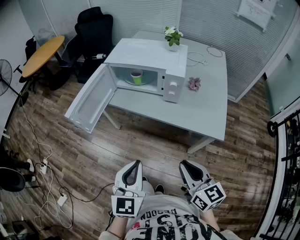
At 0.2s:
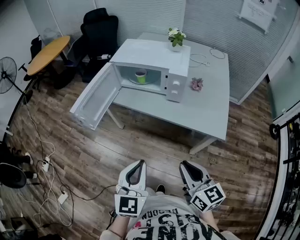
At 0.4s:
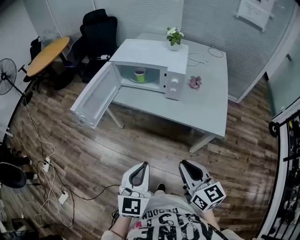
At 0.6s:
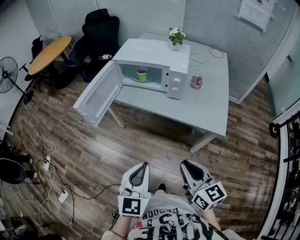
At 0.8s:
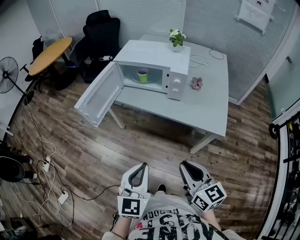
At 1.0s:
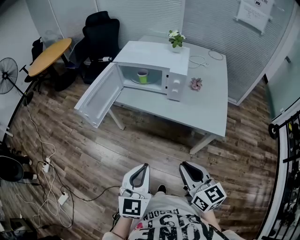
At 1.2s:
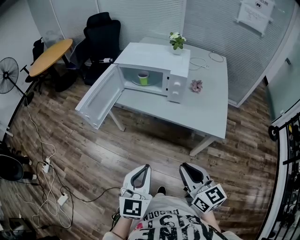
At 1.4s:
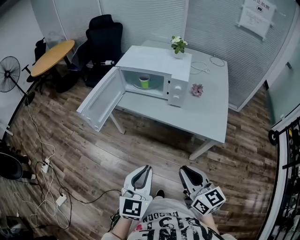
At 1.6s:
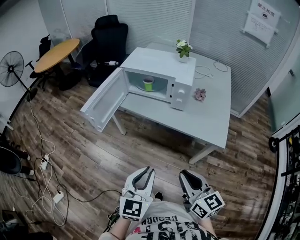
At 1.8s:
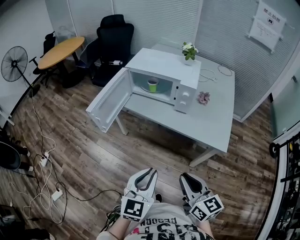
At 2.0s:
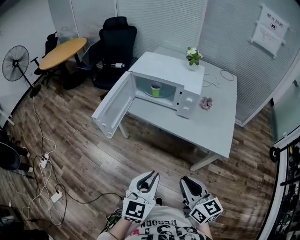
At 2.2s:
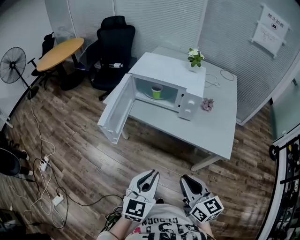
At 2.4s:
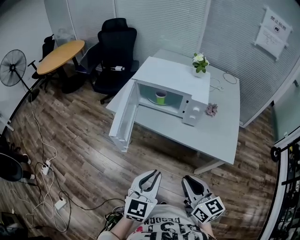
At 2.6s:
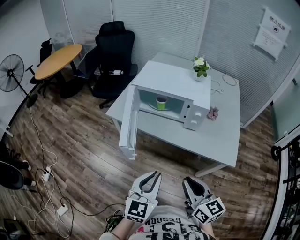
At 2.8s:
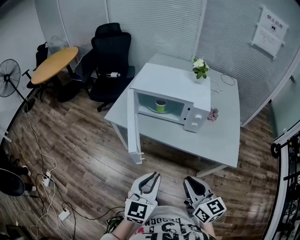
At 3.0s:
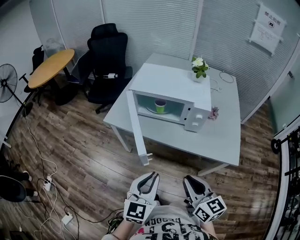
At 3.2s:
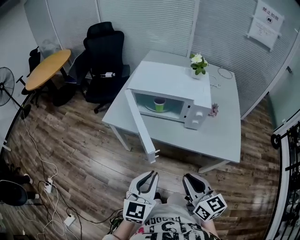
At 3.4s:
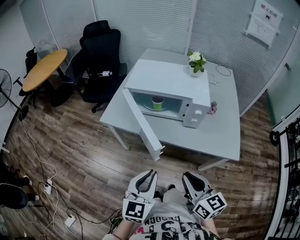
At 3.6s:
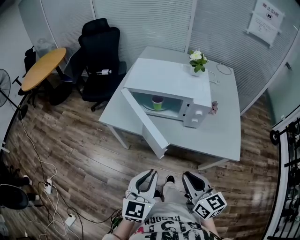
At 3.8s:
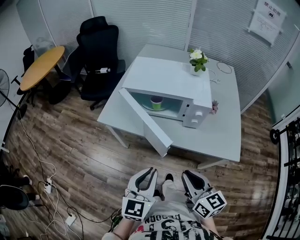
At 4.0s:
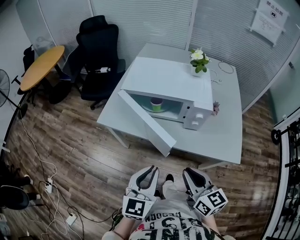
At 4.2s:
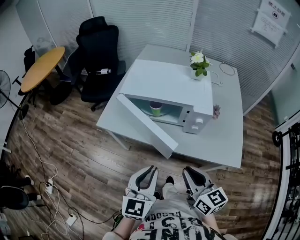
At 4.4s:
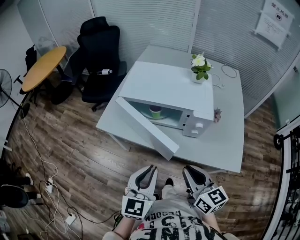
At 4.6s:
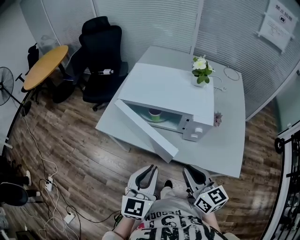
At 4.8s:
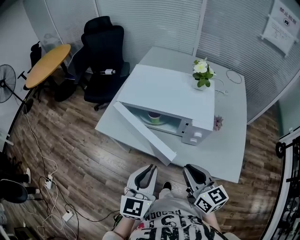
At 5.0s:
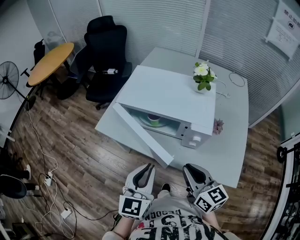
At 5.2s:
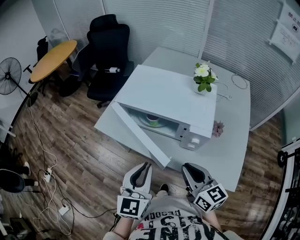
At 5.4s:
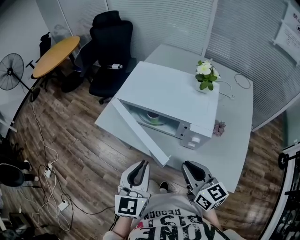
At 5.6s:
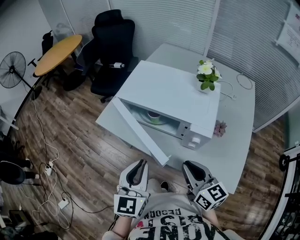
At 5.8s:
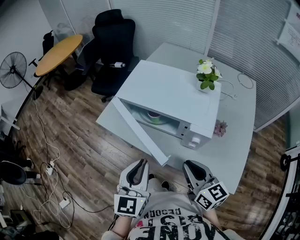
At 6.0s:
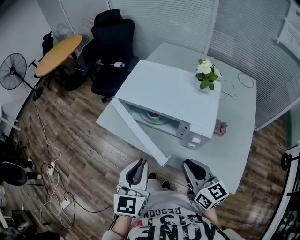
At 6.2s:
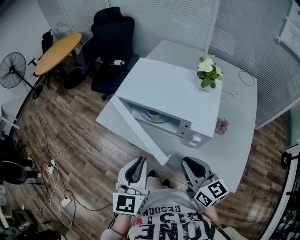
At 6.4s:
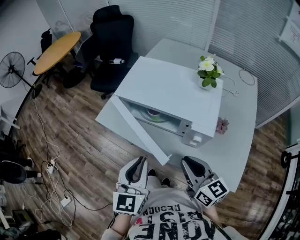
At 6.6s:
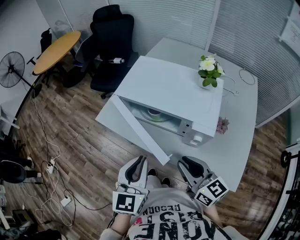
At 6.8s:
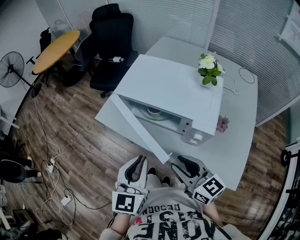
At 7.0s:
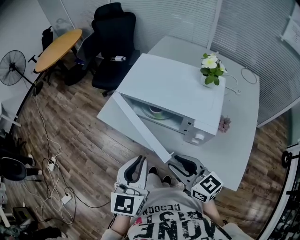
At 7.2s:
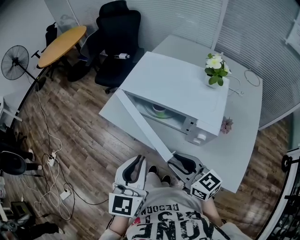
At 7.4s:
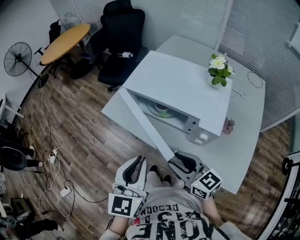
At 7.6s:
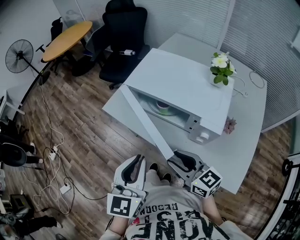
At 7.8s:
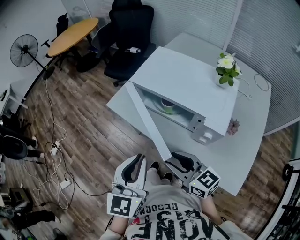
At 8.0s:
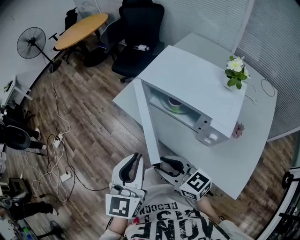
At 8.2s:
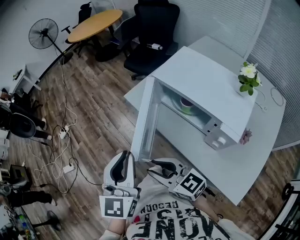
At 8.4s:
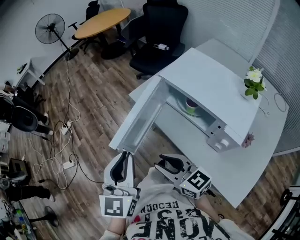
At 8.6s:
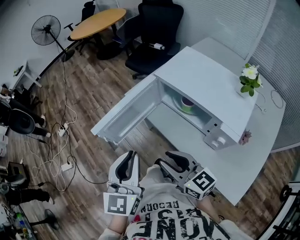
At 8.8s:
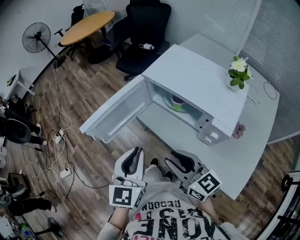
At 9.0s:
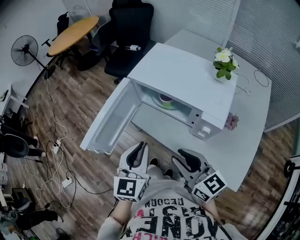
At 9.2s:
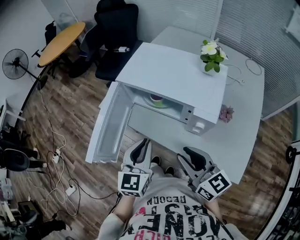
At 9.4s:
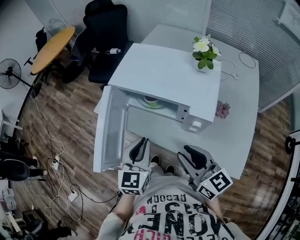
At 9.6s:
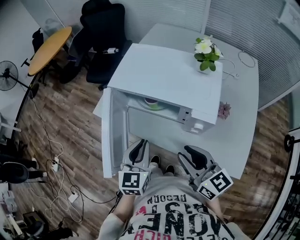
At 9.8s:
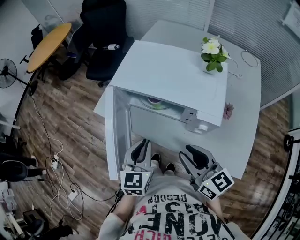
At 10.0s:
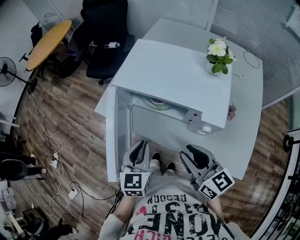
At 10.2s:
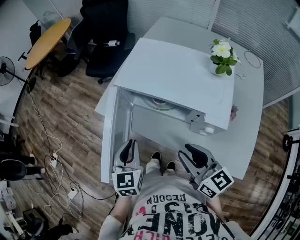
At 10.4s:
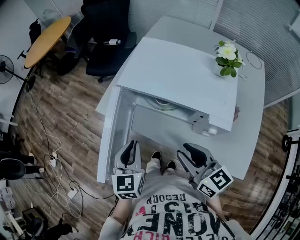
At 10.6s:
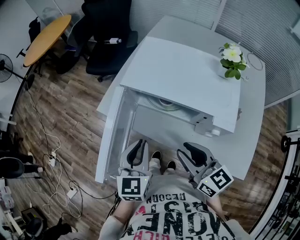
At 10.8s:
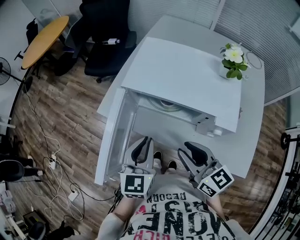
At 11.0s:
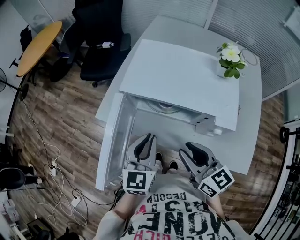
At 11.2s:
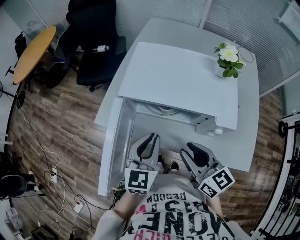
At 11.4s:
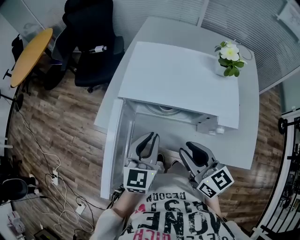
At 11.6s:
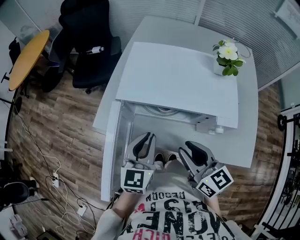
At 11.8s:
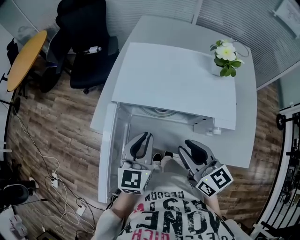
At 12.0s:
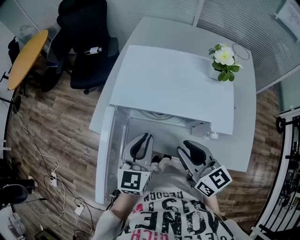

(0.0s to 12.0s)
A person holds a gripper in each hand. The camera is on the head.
0.0s - 1.6s: Both grippers travel together backward, about 5 cm.
1.6s - 3.0s: The grippers both shift forward and to the left by some 15 cm.
3.0s - 4.4s: The grippers both shift forward by about 10 cm.
4.4s - 6.0s: The left gripper travels forward by about 5 cm; the right gripper goes approximately 10 cm forward and to the right.
6.0s - 7.6s: The right gripper heads to the left, covering approximately 10 cm, and turns by some 20 degrees.
7.6s - 9.0s: The right gripper moves roughly 15 cm to the left and comes back; the left gripper goes to the left and returns, about 10 cm each way.
9.0s - 10.4s: The left gripper travels forward and downward by about 10 cm. Meanwhile the right gripper goes approximately 5 cm forward.
10.4s - 12.0s: The left gripper goes approximately 10 cm forward and to the right, and changes its angle by some 20 degrees. Meanwhile the right gripper moves forward, approximately 5 cm.

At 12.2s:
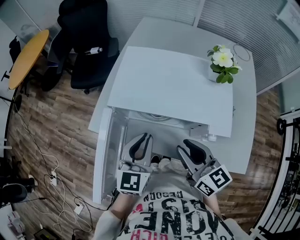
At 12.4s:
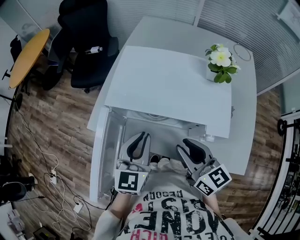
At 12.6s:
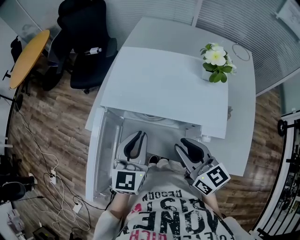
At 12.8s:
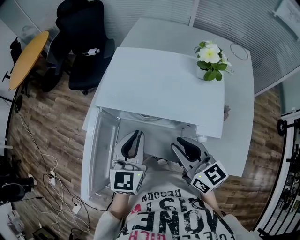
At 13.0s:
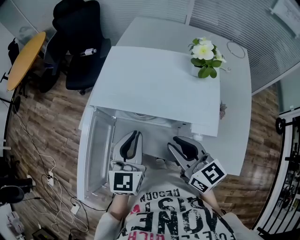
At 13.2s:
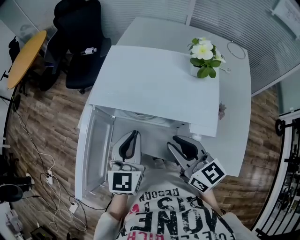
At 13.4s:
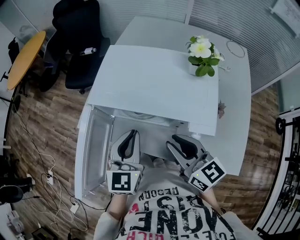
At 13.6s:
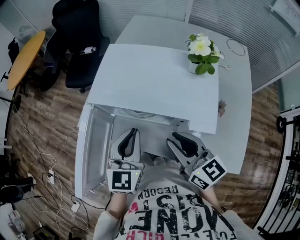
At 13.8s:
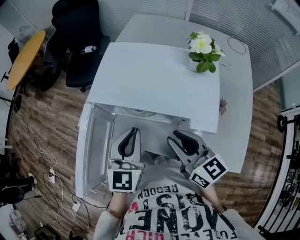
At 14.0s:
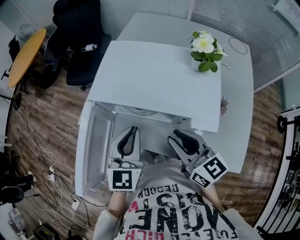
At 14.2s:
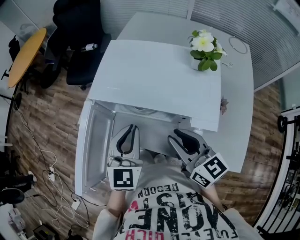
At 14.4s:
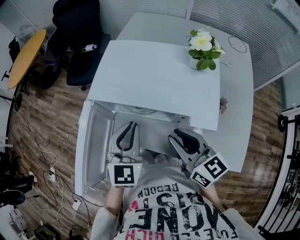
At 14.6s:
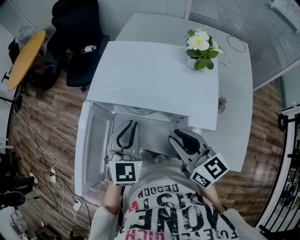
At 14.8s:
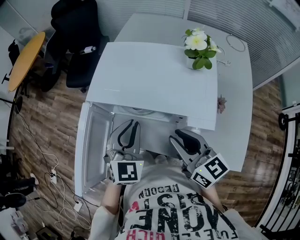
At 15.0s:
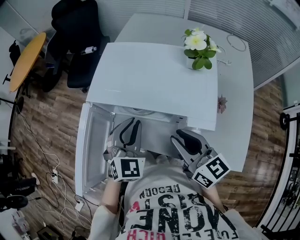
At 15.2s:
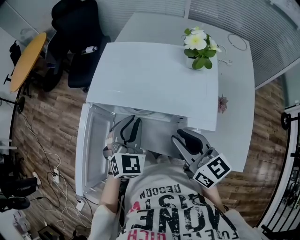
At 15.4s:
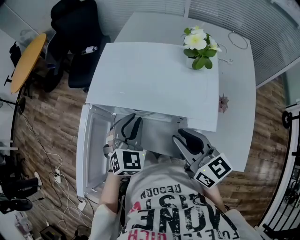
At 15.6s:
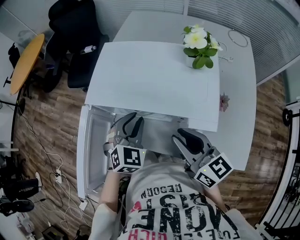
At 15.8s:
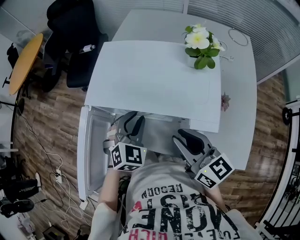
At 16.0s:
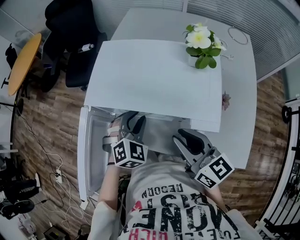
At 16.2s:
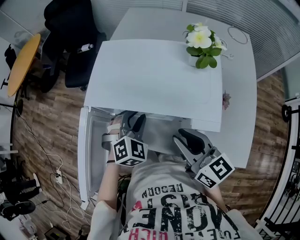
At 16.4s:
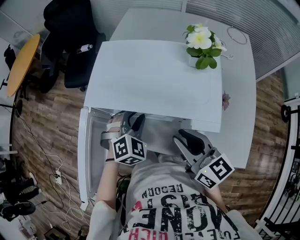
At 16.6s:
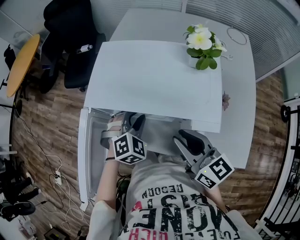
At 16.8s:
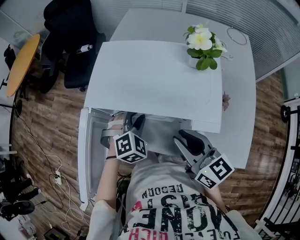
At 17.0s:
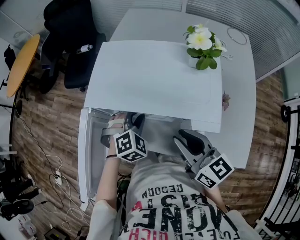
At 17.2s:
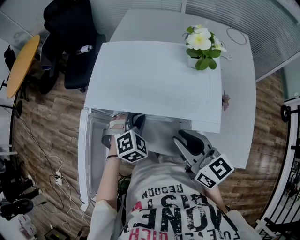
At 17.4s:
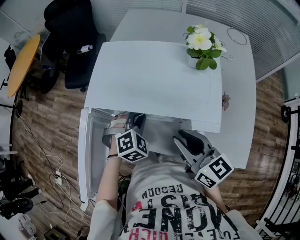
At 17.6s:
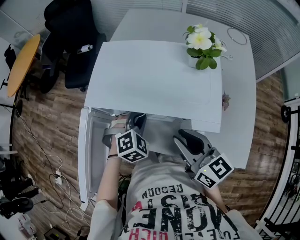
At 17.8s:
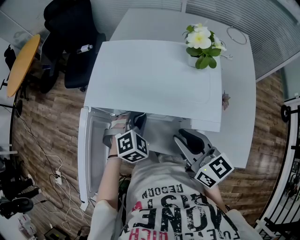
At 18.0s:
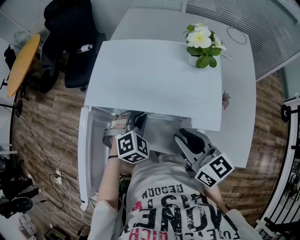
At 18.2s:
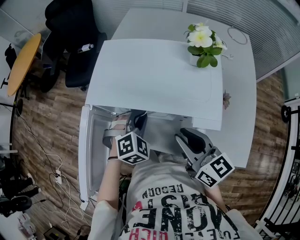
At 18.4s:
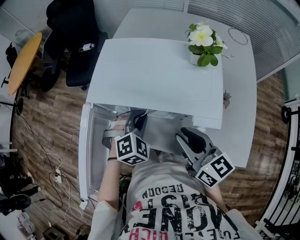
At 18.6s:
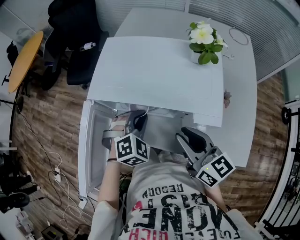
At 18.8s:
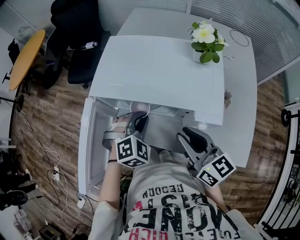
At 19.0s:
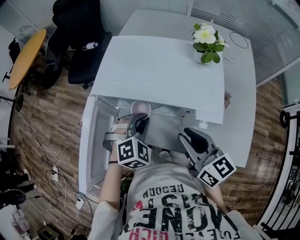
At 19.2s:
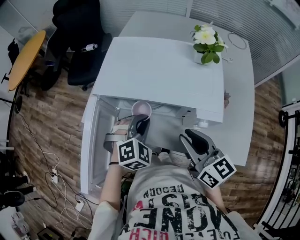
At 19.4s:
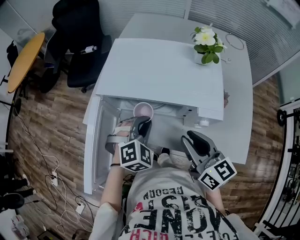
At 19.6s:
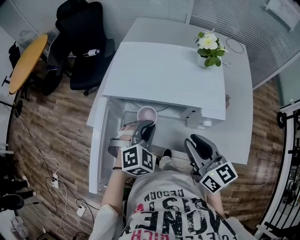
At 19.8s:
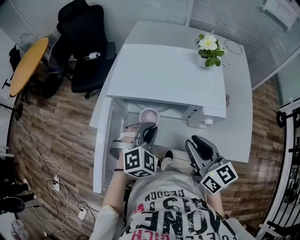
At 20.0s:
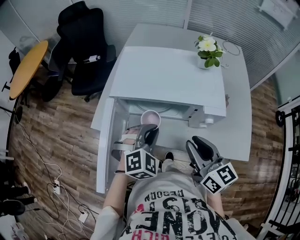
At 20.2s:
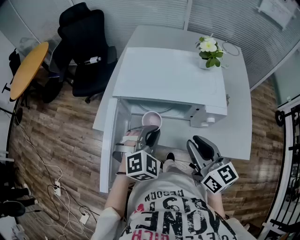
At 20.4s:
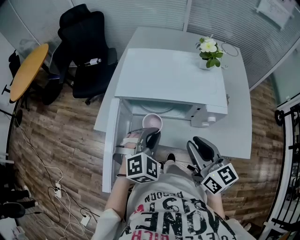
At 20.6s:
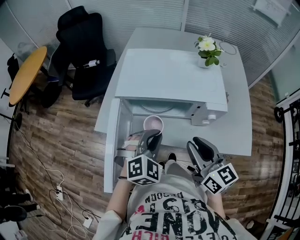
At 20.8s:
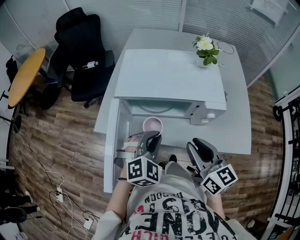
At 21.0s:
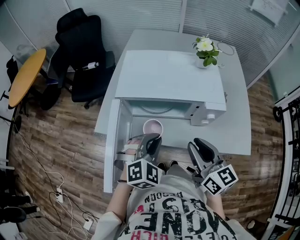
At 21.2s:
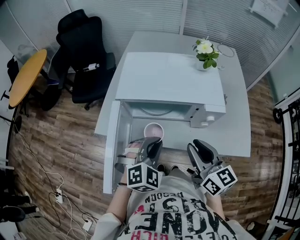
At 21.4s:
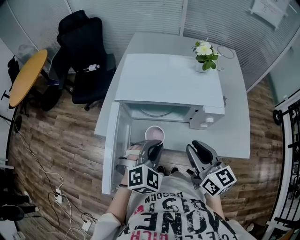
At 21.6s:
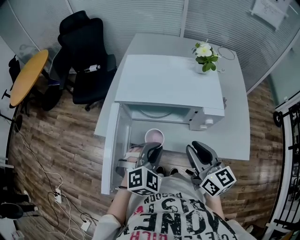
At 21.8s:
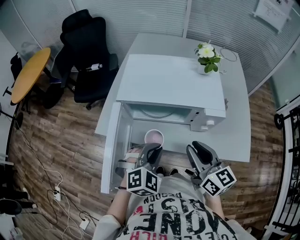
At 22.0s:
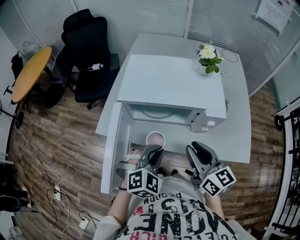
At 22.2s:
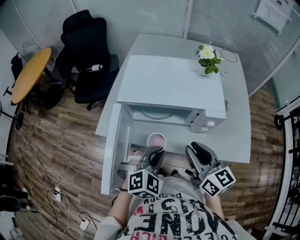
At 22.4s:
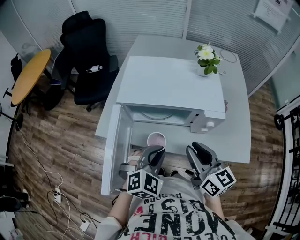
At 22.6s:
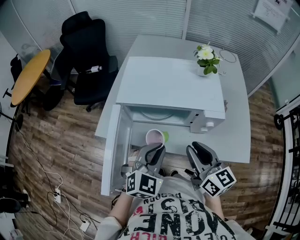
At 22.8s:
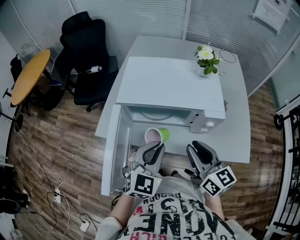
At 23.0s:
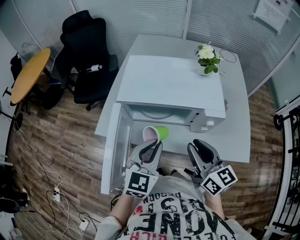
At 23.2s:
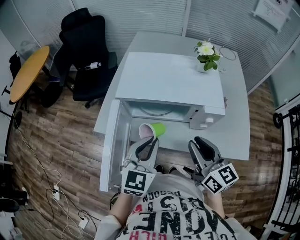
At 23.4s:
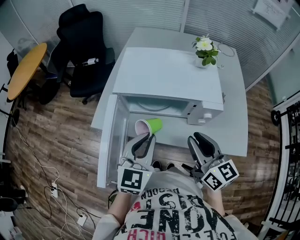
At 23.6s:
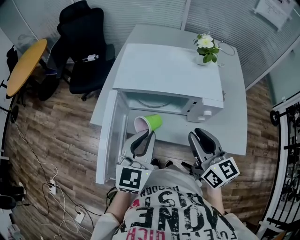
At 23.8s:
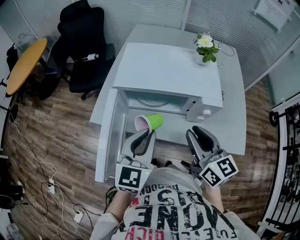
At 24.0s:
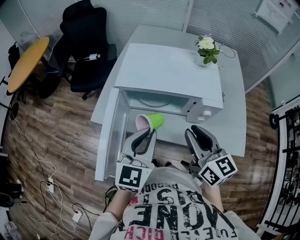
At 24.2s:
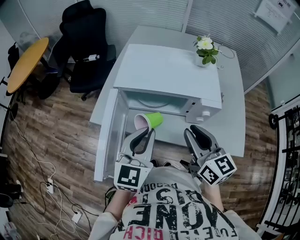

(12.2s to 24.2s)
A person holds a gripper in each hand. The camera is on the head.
12.2s - 13.8s: There are only small adjustments of the grippers.
13.8s - 15.2s: The left gripper moves roughly 5 cm, and rotates approximately 30 degrees.
15.2s - 16.6s: The left gripper travels downward by about 5 cm, and turns by approximately 30 degrees.
16.6s - 18.2s: The left gripper closes up.
18.2s - 19.8s: The right gripper is displaced backward by approximately 5 cm, while the left gripper shifts roughly 10 cm backward and upward.
19.8s - 21.2s: The left gripper shifts approximately 5 cm backward.
21.2s - 22.6s: The grippers stay close to where they were, moving slightly.
22.6s - 24.2s: The left gripper travels upward by roughly 5 cm, and changes its angle by some 30 degrees.
